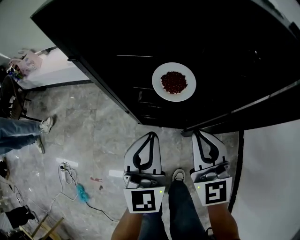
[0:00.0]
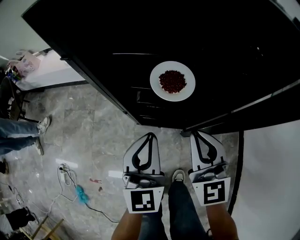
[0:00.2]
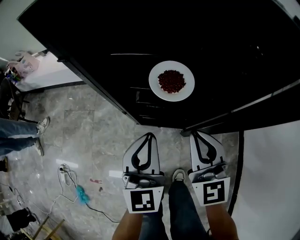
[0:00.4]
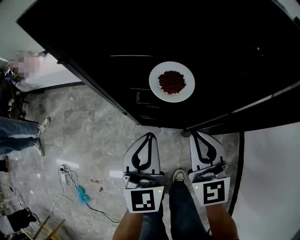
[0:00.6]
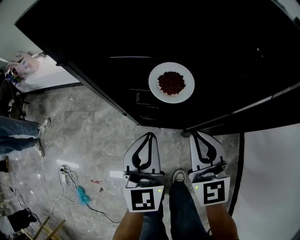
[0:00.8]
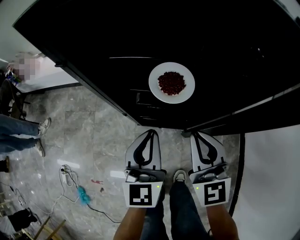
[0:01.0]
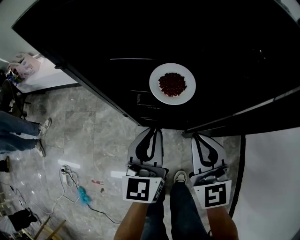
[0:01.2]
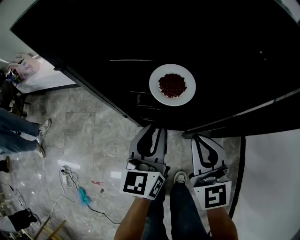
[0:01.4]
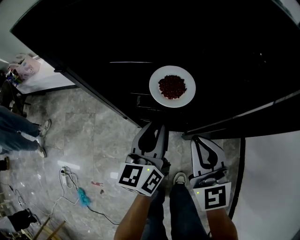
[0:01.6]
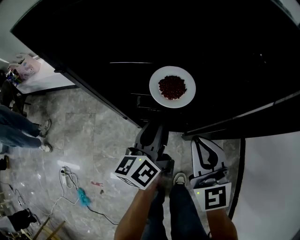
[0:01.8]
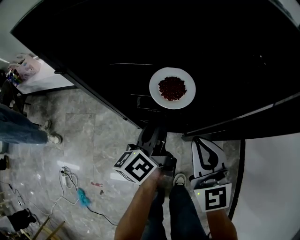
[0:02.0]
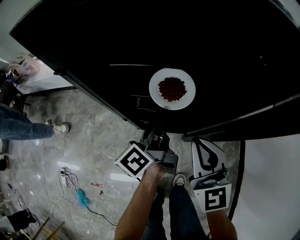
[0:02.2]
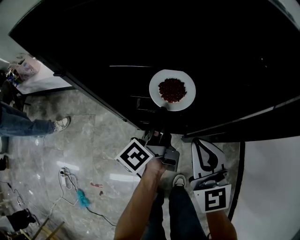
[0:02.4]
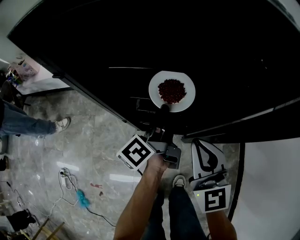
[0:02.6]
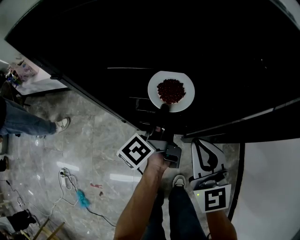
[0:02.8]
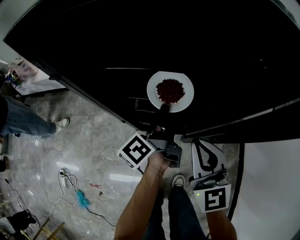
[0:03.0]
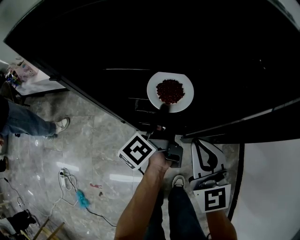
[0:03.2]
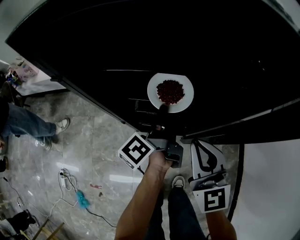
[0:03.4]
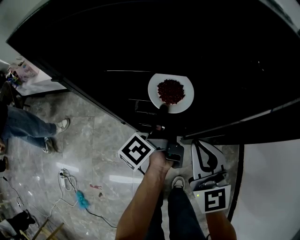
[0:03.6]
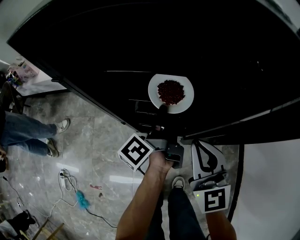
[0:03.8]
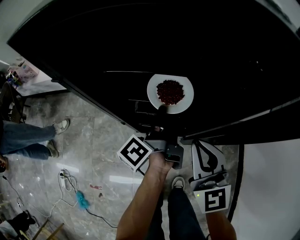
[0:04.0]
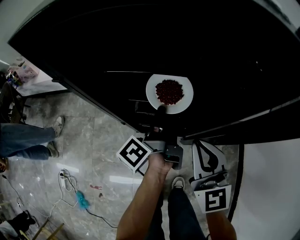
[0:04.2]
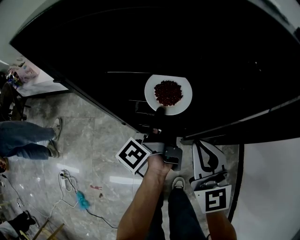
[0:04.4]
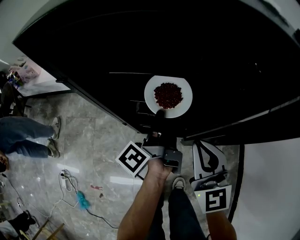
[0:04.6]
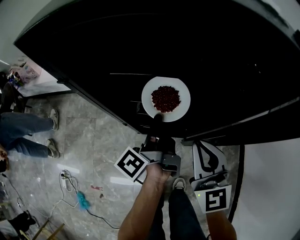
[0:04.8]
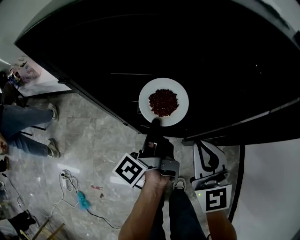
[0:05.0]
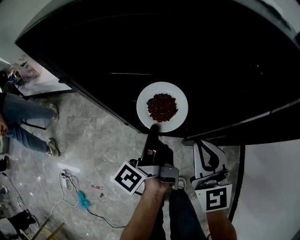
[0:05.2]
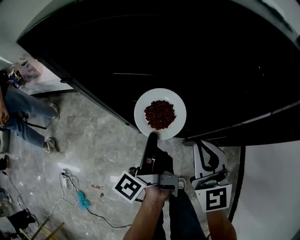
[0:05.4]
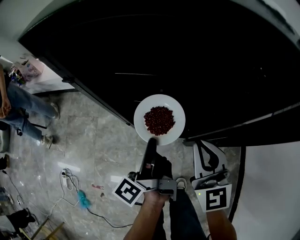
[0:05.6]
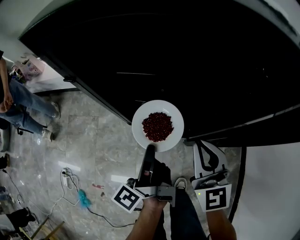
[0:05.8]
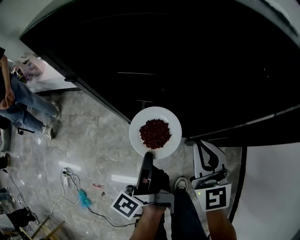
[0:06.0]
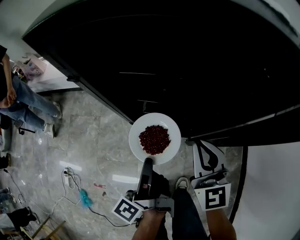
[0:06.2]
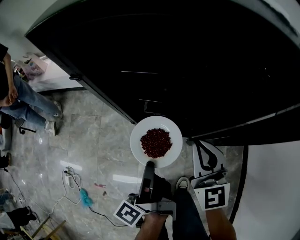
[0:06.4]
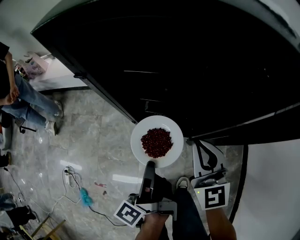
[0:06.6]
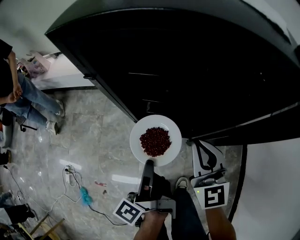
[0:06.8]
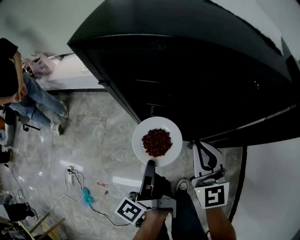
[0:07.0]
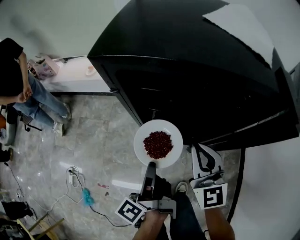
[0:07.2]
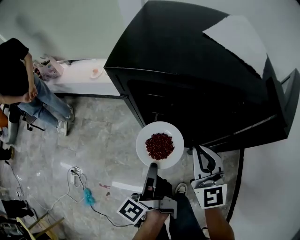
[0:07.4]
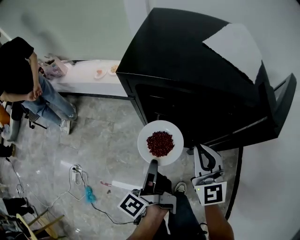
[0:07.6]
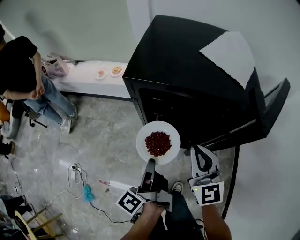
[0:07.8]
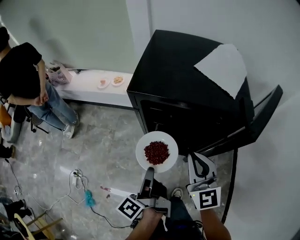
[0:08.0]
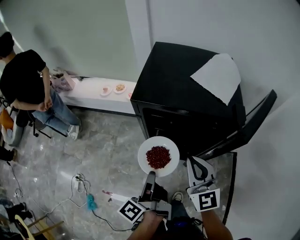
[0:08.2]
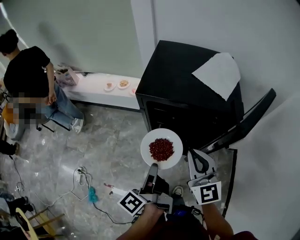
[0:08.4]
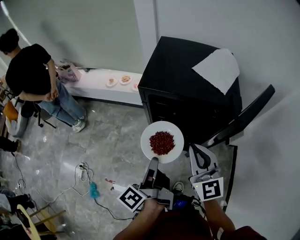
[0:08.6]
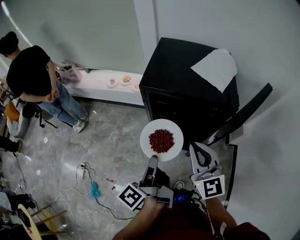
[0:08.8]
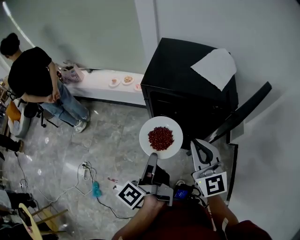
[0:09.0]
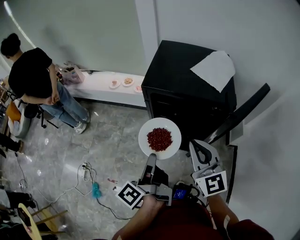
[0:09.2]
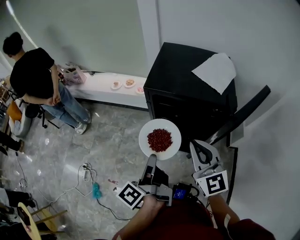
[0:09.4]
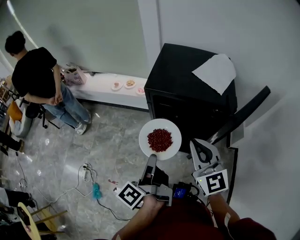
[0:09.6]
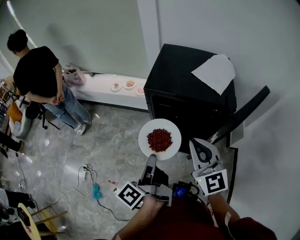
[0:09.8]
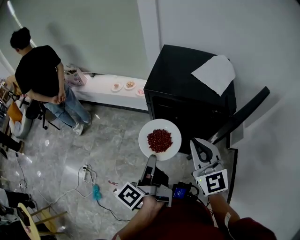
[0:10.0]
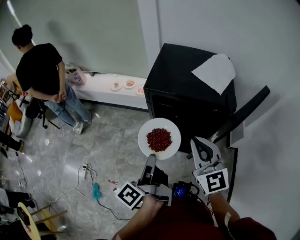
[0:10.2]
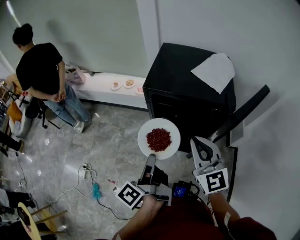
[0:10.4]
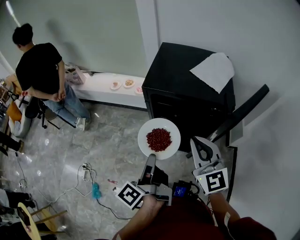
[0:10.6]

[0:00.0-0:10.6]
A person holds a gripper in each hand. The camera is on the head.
0:00.0 to 0:01.6: The left gripper moves forward, approximately 5 cm, and turns by roughly 40 degrees.
0:01.6 to 0:03.0: The left gripper heads forward, covering approximately 5 cm, and rolls counterclockwise, seen from behind, by approximately 50 degrees.
0:03.0 to 0:04.6: The left gripper closes its fingers.
0:04.6 to 0:06.0: The left gripper heads backward and to the left, covering roughly 15 cm.
0:06.0 to 0:07.6: Both grippers travel together upward, approximately 15 cm.
0:07.6 to 0:09.0: The grippers both shift upward and backward by roughly 20 cm.
0:09.0 to 0:10.6: There are only small adjustments of the grippers.

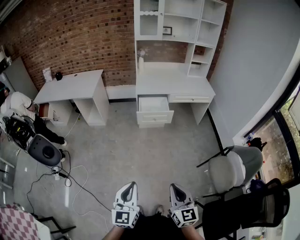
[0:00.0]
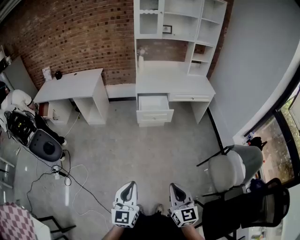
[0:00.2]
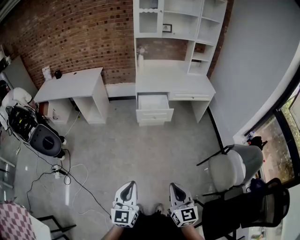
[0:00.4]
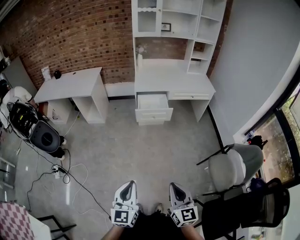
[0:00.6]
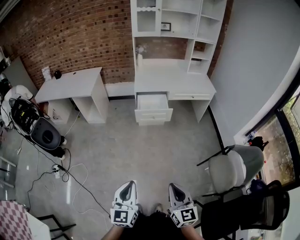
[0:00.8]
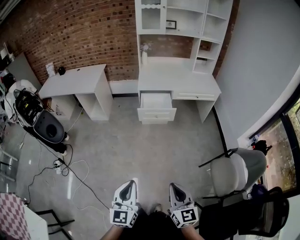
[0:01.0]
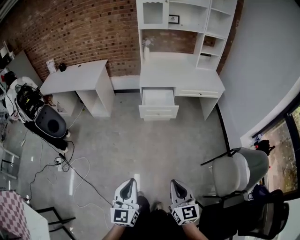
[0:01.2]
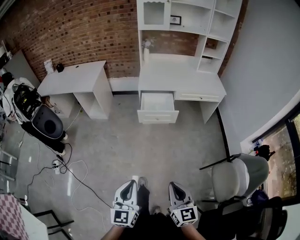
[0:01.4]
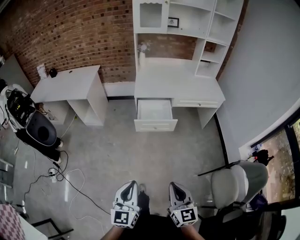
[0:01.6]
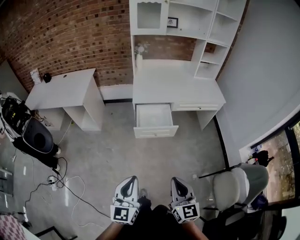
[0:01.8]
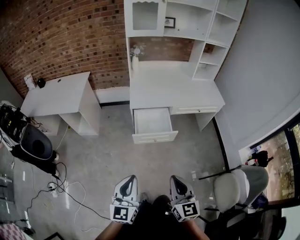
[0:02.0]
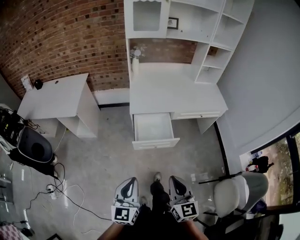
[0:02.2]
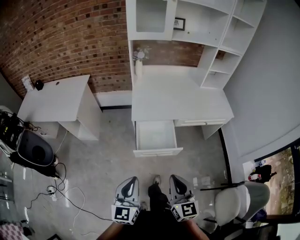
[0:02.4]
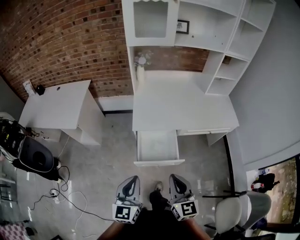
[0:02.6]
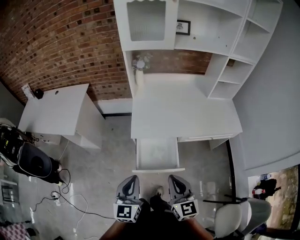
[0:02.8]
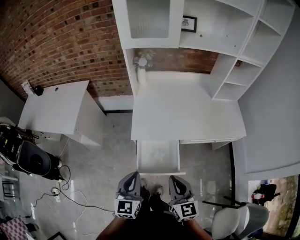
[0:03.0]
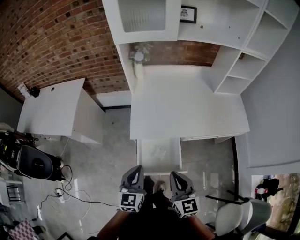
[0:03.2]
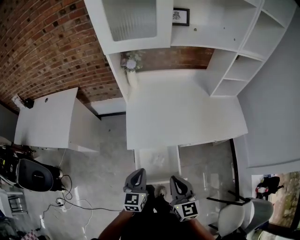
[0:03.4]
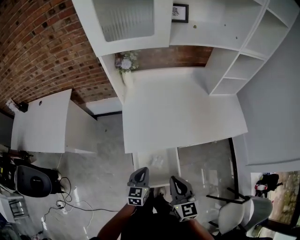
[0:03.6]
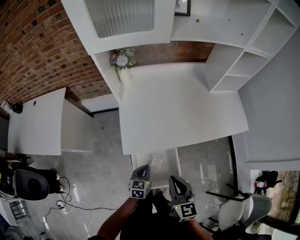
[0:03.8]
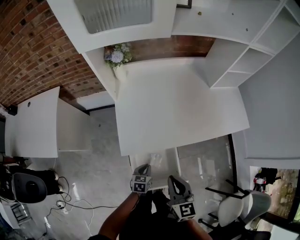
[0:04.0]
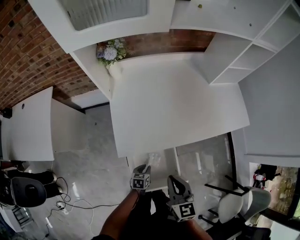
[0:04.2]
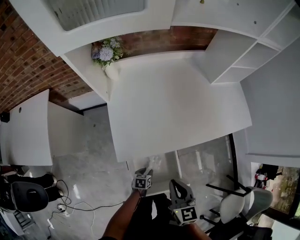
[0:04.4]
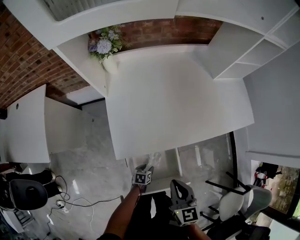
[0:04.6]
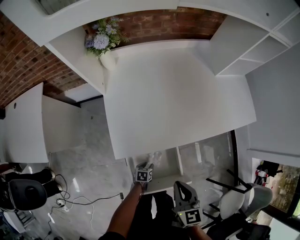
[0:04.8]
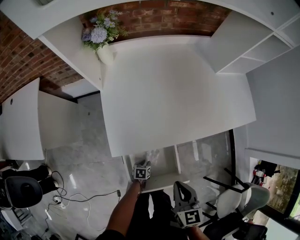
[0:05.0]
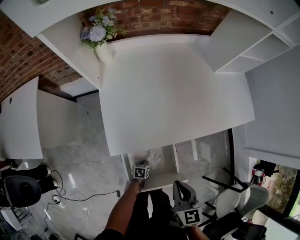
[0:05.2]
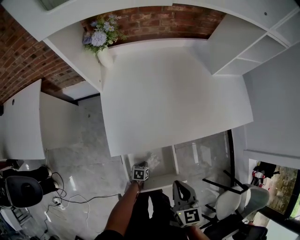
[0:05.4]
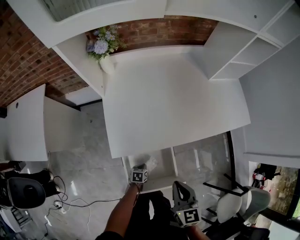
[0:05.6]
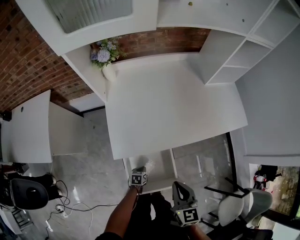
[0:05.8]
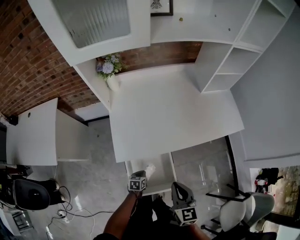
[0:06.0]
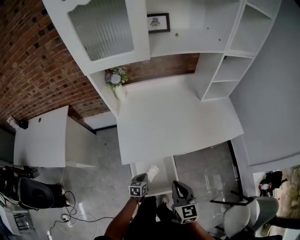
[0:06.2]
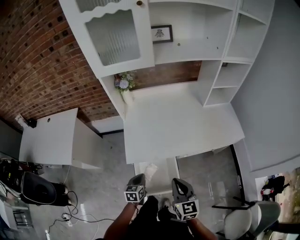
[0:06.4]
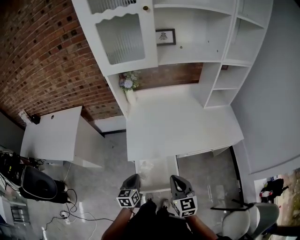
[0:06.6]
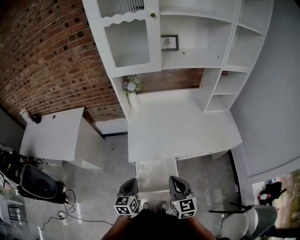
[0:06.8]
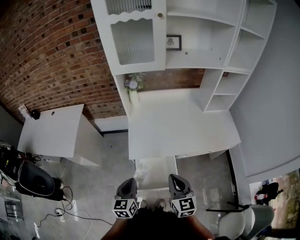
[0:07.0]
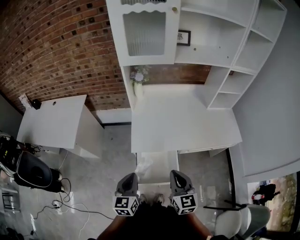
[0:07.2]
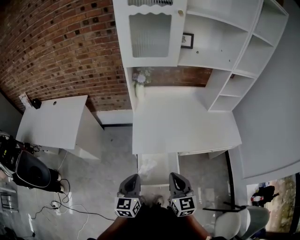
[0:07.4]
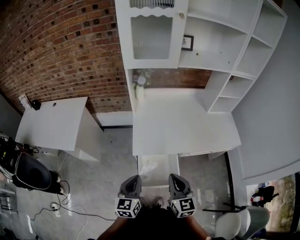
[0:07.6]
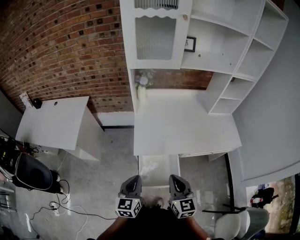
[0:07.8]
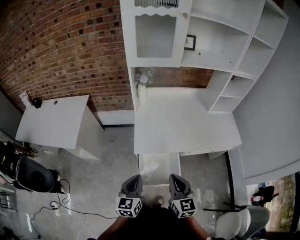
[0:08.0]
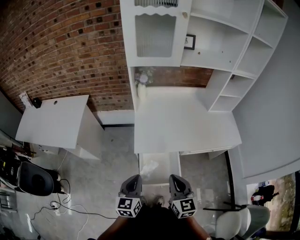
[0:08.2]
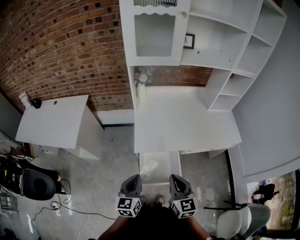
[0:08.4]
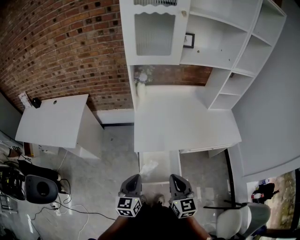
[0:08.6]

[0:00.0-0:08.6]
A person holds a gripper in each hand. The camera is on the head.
0:00.0 to 0:01.4: The left gripper shifts roughly 15 cm forward and to the right. Meanwhile the right gripper moves forward, about 15 cm.
0:01.4 to 0:02.8: The two grippers travel together, forward, approximately 60 cm.
0:02.8 to 0:04.4: The right gripper shifts by some 25 cm, and turns by approximately 20 degrees. The left gripper travels downward by roughly 50 cm, angles its fingers downward, by about 50 degrees, and opens.
0:04.4 to 0:05.8: The left gripper goes downward and returns, roughly 10 cm each way, and closes its fingers. The right gripper heads to the right, covering approximately 5 cm.
0:05.8 to 0:07.2: The right gripper travels upward and backward by some 15 cm. Meanwhile the left gripper heads upward, covering approximately 50 cm, and tips its fingers upward by roughly 40 degrees.
0:07.2 to 0:08.6: The right gripper moves roughly 5 cm.

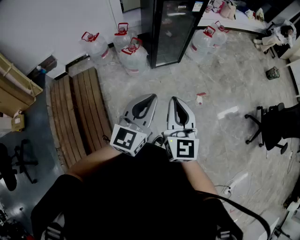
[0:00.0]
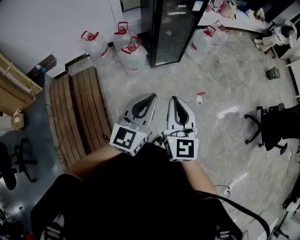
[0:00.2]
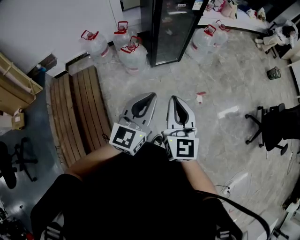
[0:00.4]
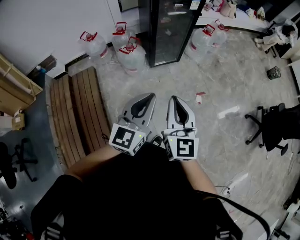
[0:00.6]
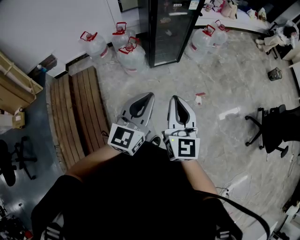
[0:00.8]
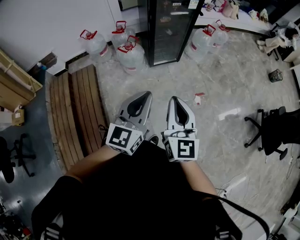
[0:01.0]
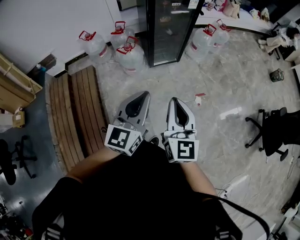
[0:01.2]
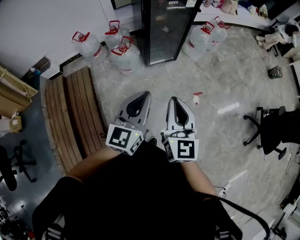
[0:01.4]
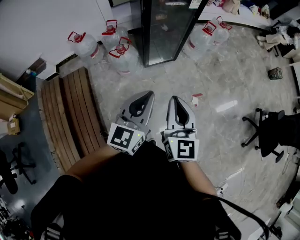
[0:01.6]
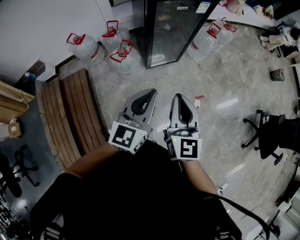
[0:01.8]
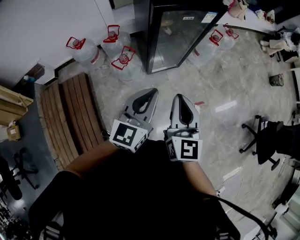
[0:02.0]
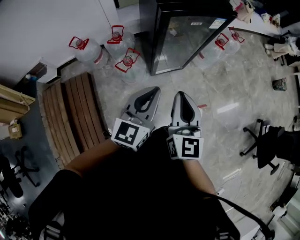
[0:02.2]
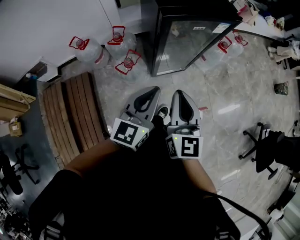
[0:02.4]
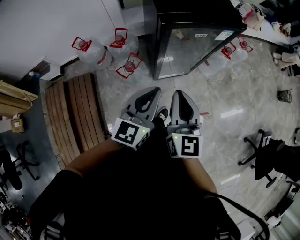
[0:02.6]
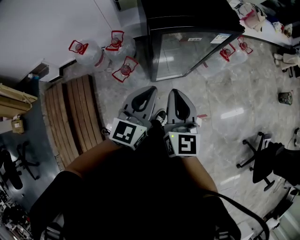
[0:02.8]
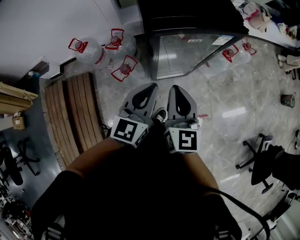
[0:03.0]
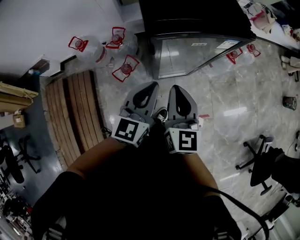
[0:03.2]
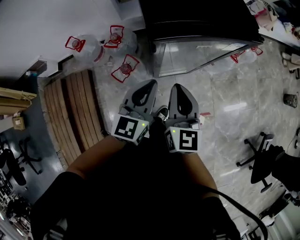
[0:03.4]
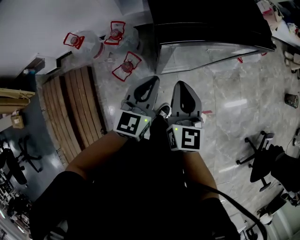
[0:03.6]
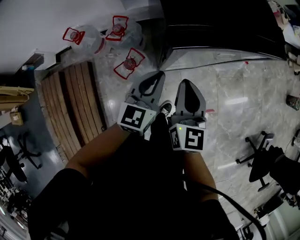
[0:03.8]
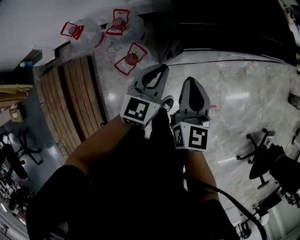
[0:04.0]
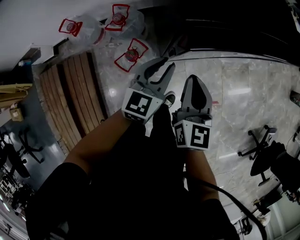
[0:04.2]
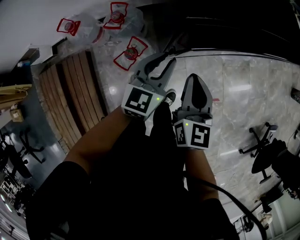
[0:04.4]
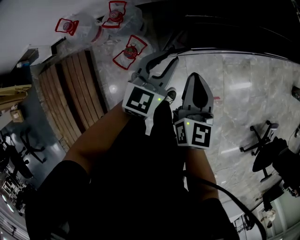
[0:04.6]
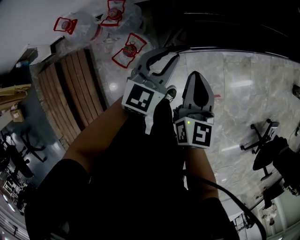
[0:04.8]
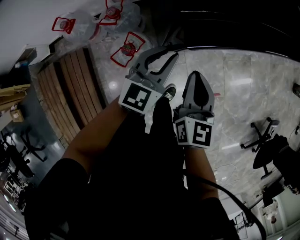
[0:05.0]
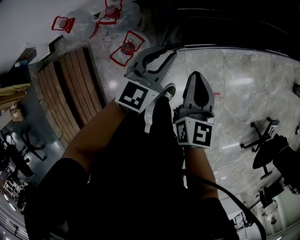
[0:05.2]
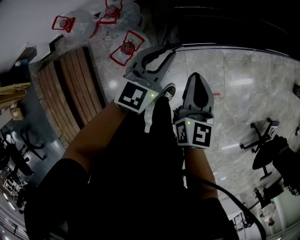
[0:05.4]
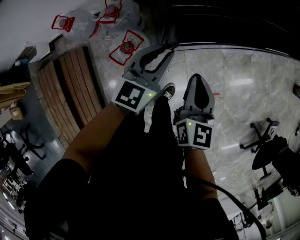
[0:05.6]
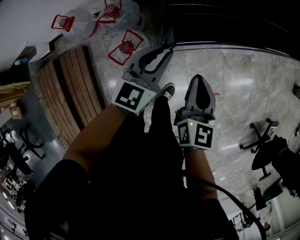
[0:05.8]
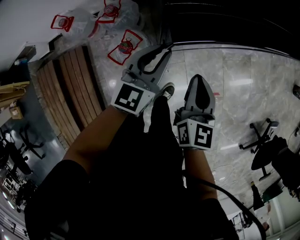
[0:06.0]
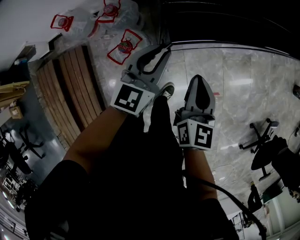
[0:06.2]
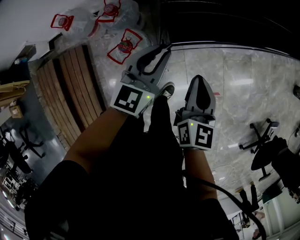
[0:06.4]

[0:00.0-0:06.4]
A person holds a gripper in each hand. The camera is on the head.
0:00.0 to 0:01.6: The grippers both shift forward by roughly 15 cm.
0:01.6 to 0:03.2: Both grippers travel together forward, roughly 35 cm.
0:03.2 to 0:04.8: Both grippers move downward and forward, approximately 15 cm.
0:04.8 to 0:06.4: There are only small adjustments of the grippers.
